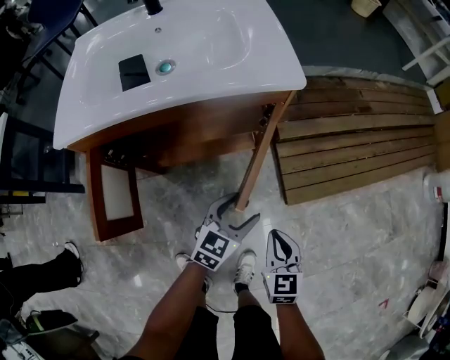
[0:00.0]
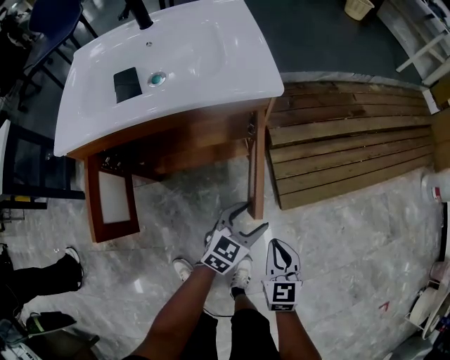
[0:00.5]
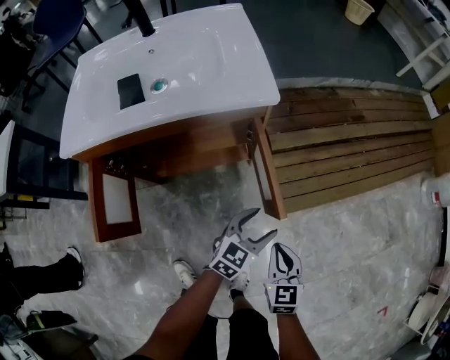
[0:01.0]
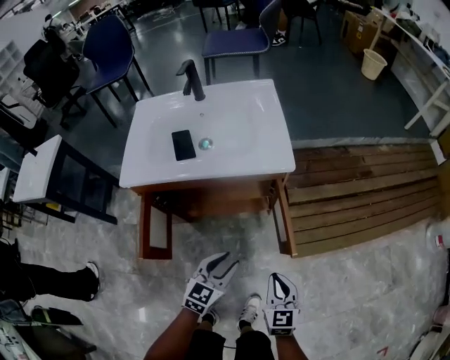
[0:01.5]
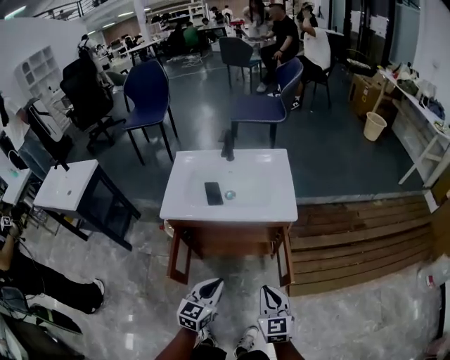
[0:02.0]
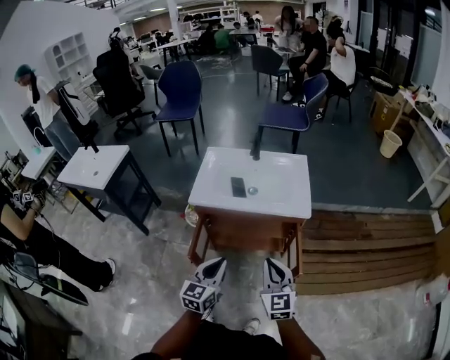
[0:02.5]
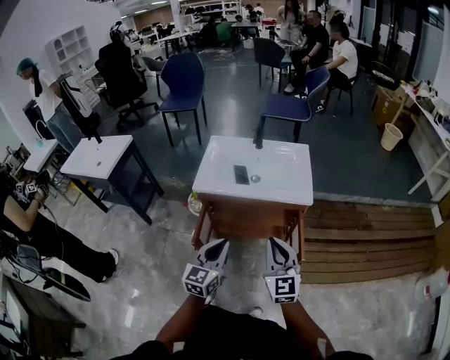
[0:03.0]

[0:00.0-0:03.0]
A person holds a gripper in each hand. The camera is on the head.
0:00.0 to 0:01.5: The right gripper heads upward, covering roughly 10 cm. Meanwhile the left gripper goes roughly 15 cm upward and backward, goes to the right and returns, roughly 10 cm each way, and closes.
0:01.5 to 0:03.0: The left gripper is displaced upward and to the left by roughly 30 cm, rotates about 30 degrees, and closes up; the right gripper is displaced upward by some 35 cm, and swivels some 30 degrees.

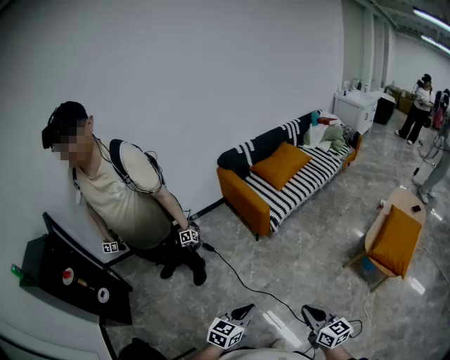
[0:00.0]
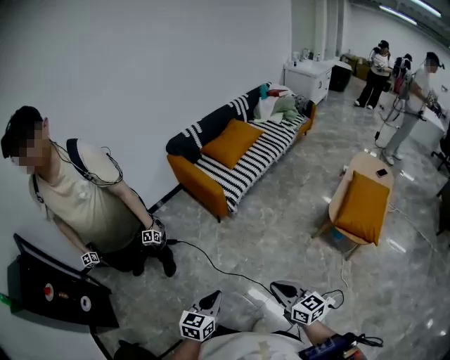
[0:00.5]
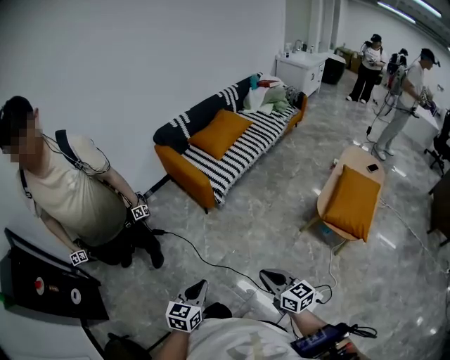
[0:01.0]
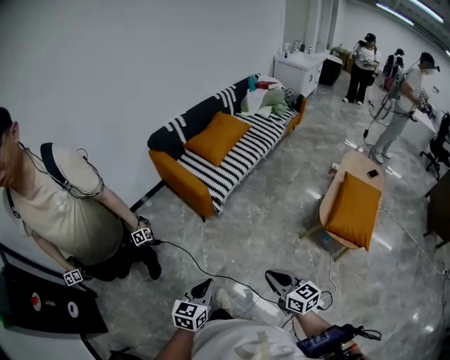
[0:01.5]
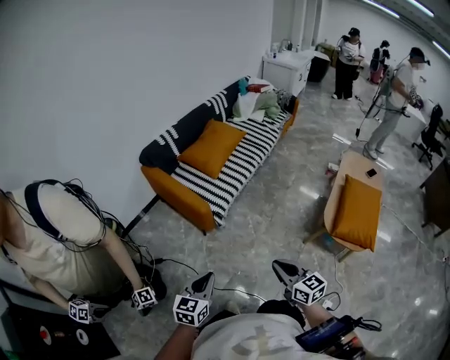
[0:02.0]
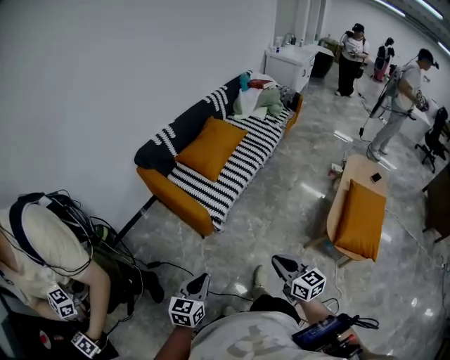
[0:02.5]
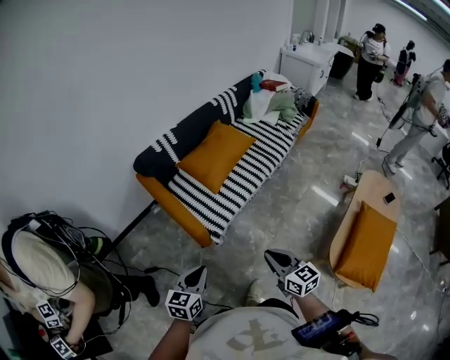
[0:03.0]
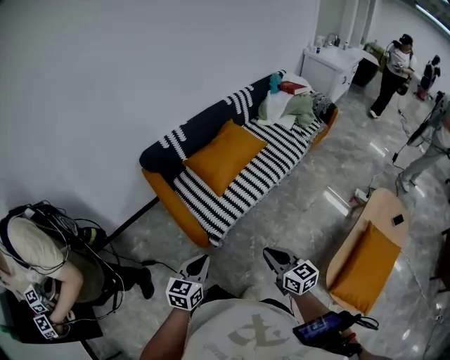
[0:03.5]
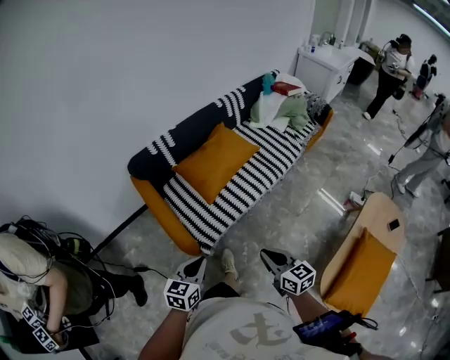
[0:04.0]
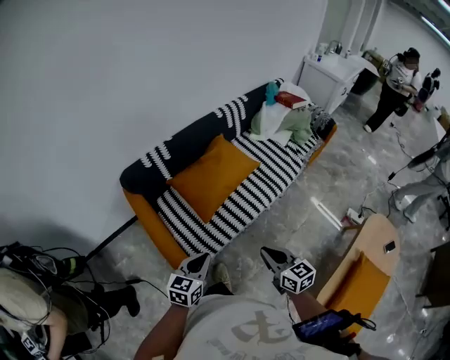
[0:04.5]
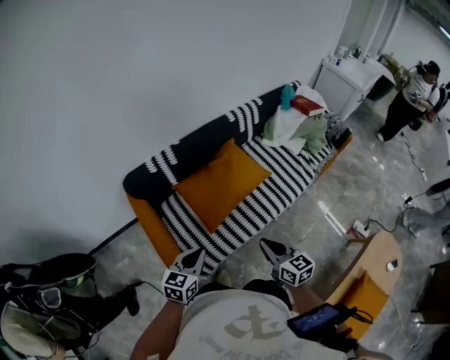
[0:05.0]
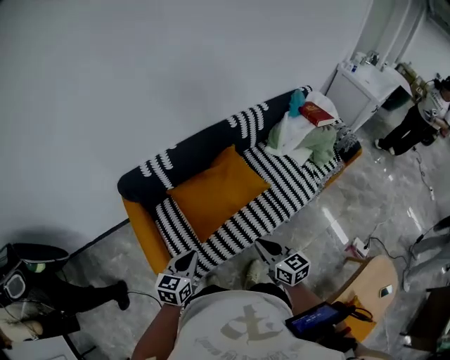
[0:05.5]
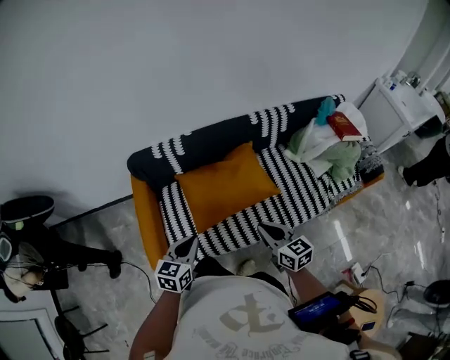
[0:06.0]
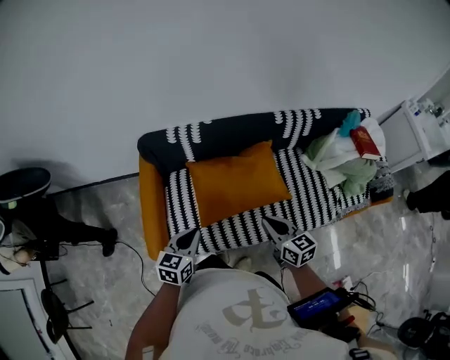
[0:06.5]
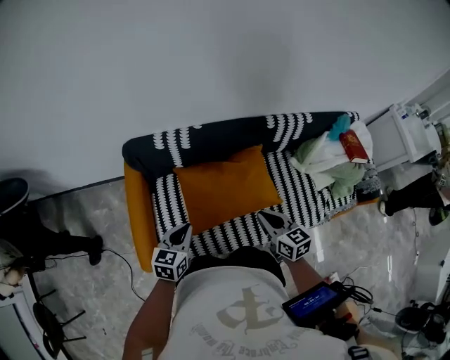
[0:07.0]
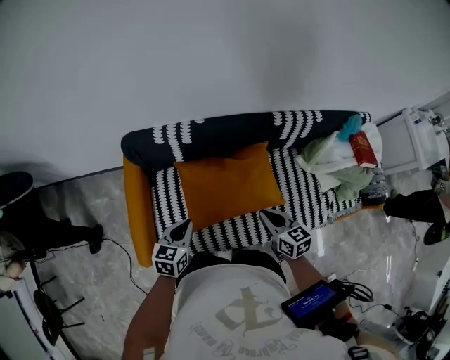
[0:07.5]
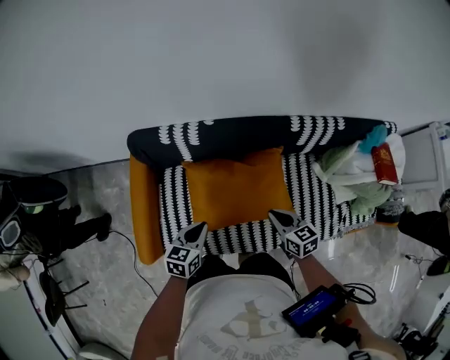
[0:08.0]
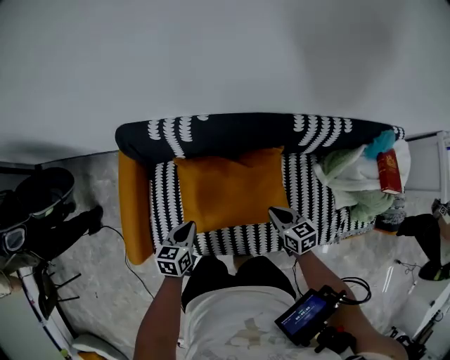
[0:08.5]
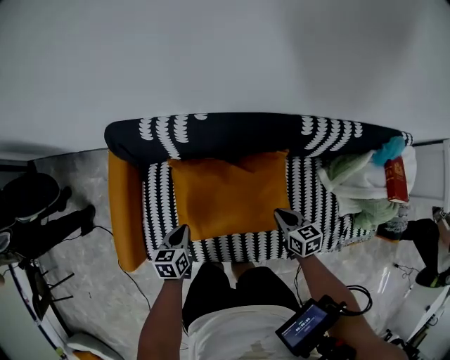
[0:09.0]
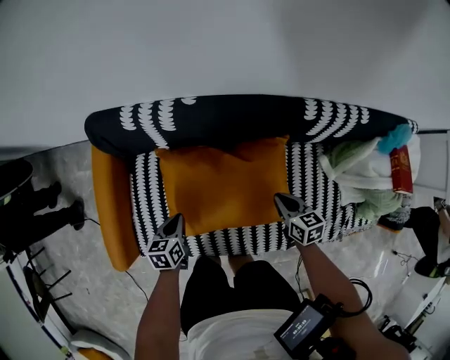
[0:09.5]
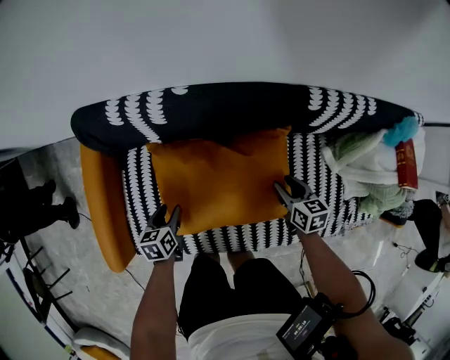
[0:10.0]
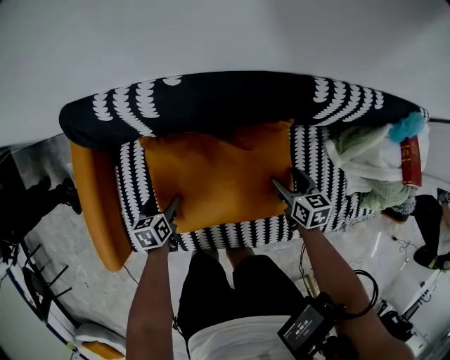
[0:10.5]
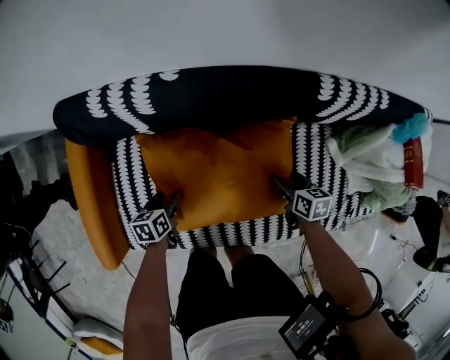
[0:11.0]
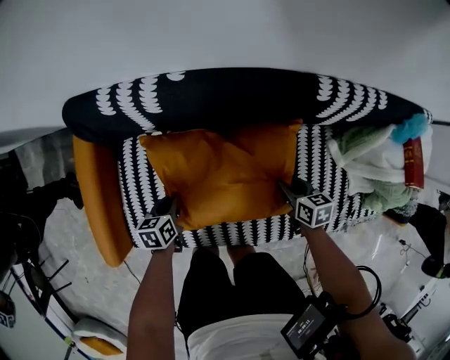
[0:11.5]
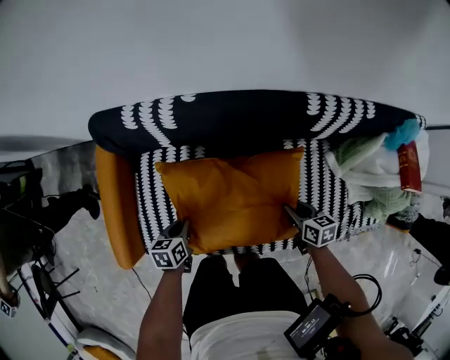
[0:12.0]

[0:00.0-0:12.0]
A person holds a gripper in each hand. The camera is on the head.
0:00.0 to 0:02.0: The two grippers go some 30 cm forward.
0:02.0 to 0:04.0: The right gripper travels forward by some 40 cm, while the left gripper heads forward and to the right, covering about 40 cm.
0:04.0 to 0:06.0: The right gripper ends up roughly 50 cm from where it was, and rotates approximately 20 degrees, while the left gripper shifts by approximately 40 cm, and swivels approximately 20 degrees.
0:06.0 to 0:08.0: Both grippers travel together forward and downward, some 25 cm. The right gripper rotates roughly 20 degrees.
0:08.0 to 0:10.0: The left gripper shifts about 25 cm downward, turns by about 30 degrees, and opens. Meanwhile the right gripper is displaced downward, to the right and forward by roughly 25 cm, and opens up.
0:10.0 to 0:12.0: The right gripper heads backward, covering some 10 cm, and opens, then closes once more. The left gripper ends up some 5 cm from where it was, and closes up.

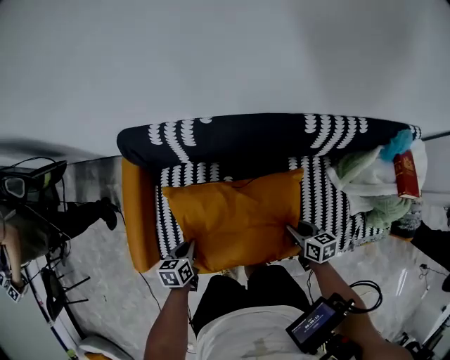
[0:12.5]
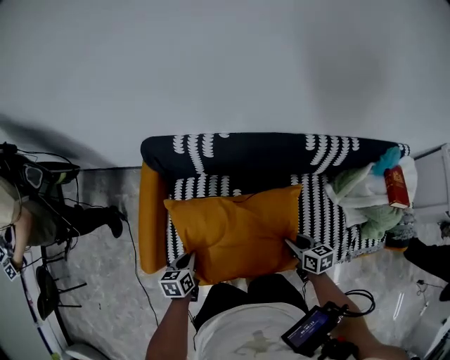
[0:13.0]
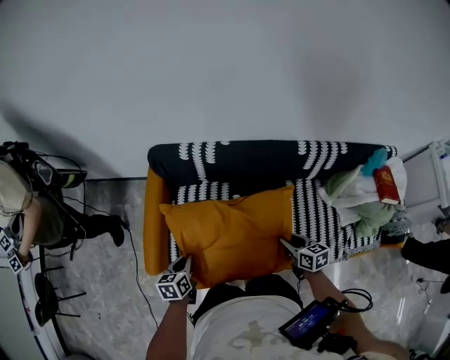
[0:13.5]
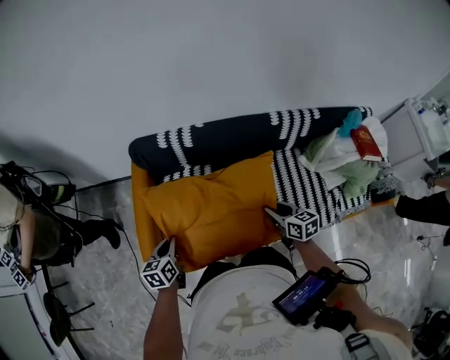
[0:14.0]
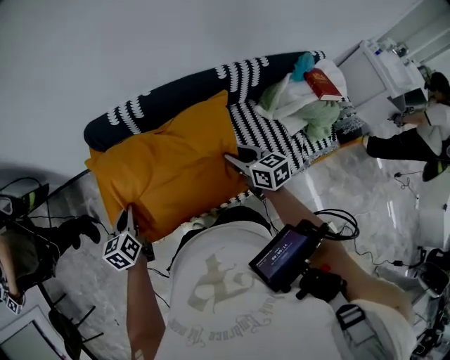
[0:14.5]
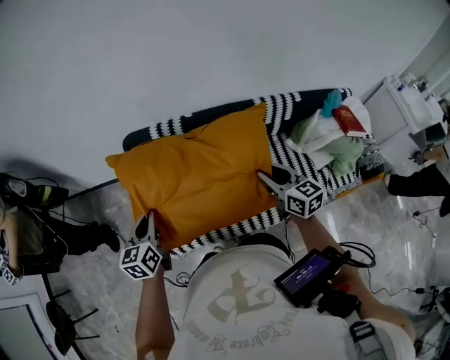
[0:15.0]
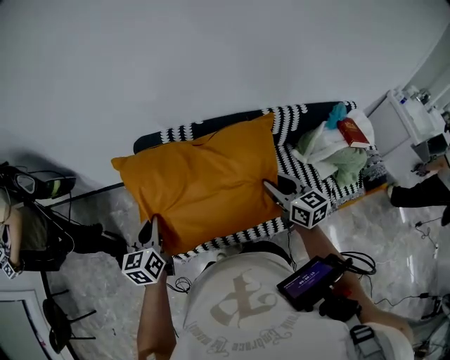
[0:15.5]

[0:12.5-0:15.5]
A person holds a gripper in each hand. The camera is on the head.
0:12.5 to 0:14.0: The grippers both shift upward and to the left by about 20 cm.
0:14.0 to 0:15.5: The grippers both shift upward by about 10 cm. The right gripper swivels some 20 degrees, while the left gripper rotates about 20 degrees.

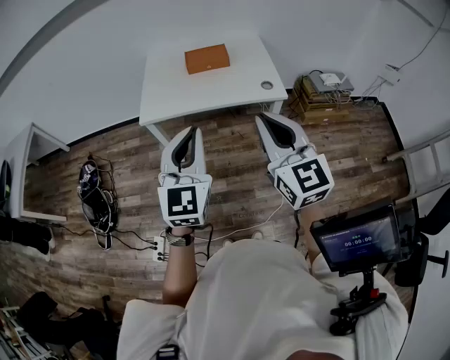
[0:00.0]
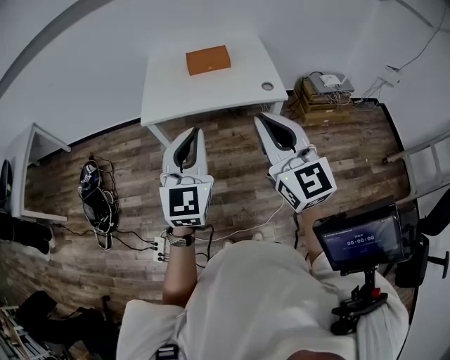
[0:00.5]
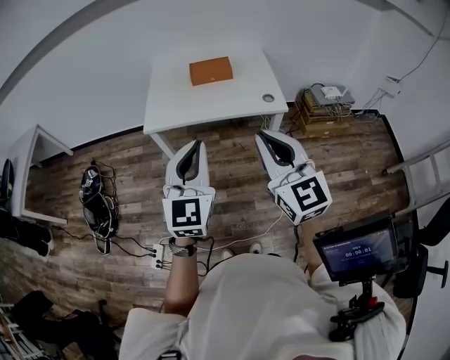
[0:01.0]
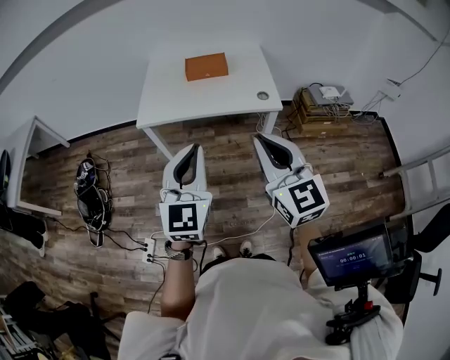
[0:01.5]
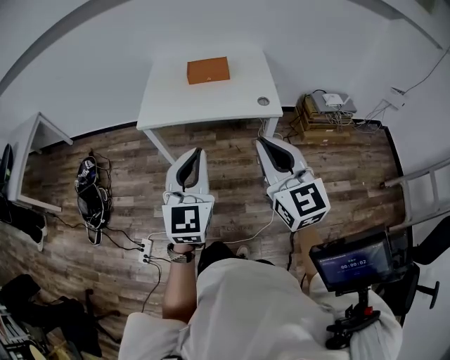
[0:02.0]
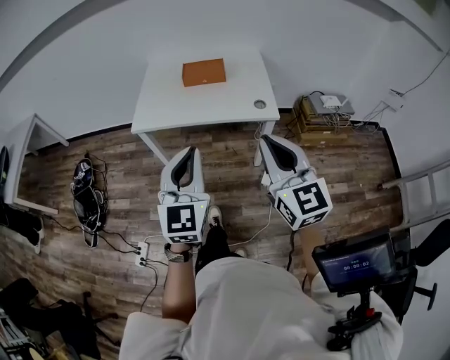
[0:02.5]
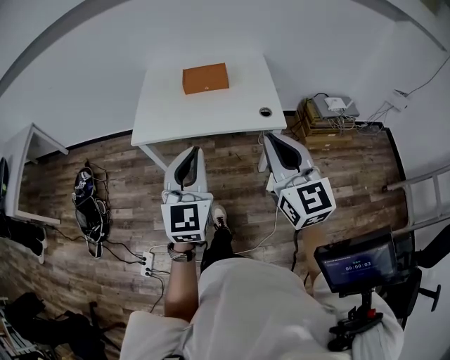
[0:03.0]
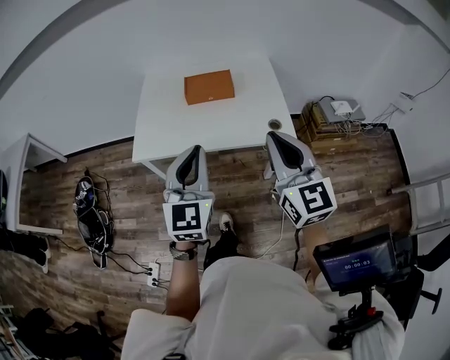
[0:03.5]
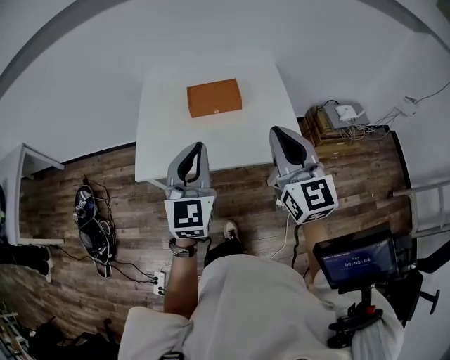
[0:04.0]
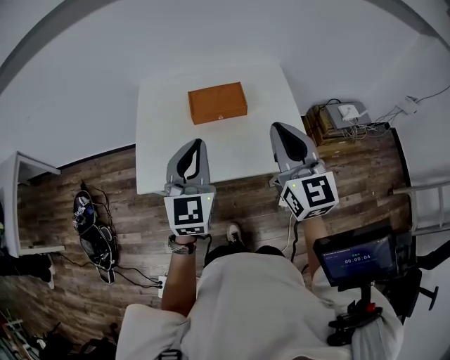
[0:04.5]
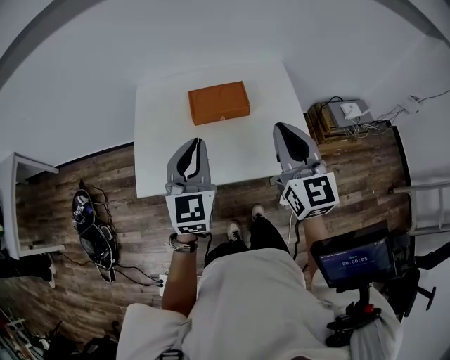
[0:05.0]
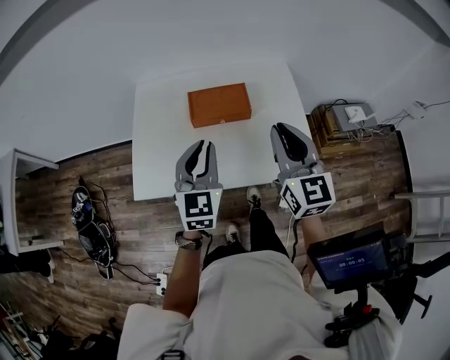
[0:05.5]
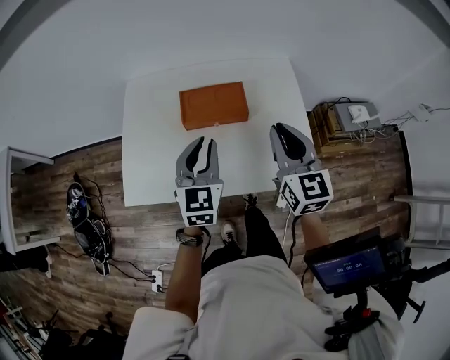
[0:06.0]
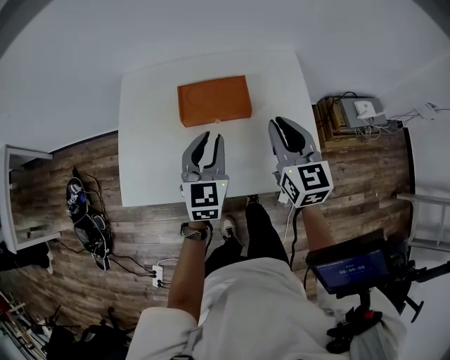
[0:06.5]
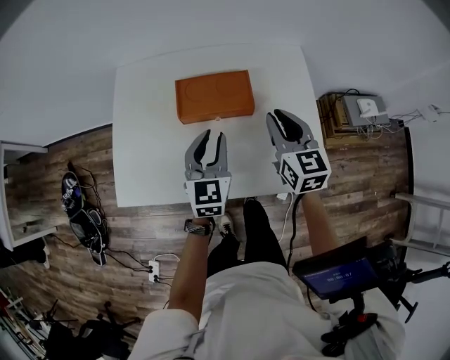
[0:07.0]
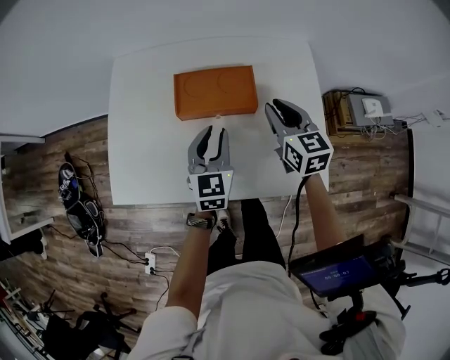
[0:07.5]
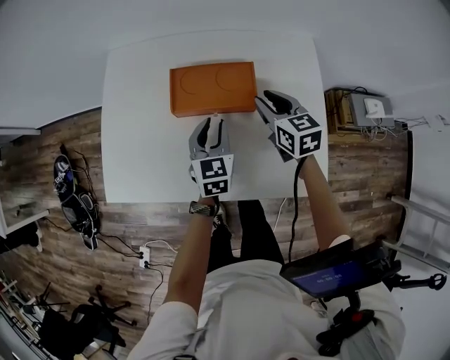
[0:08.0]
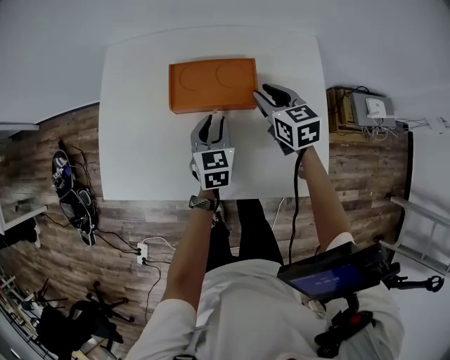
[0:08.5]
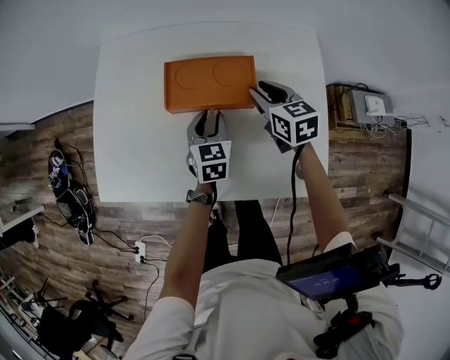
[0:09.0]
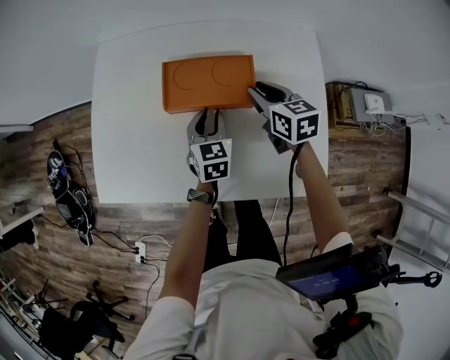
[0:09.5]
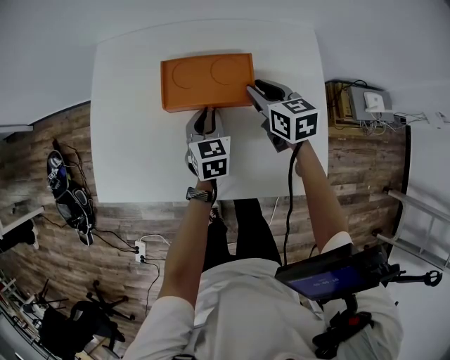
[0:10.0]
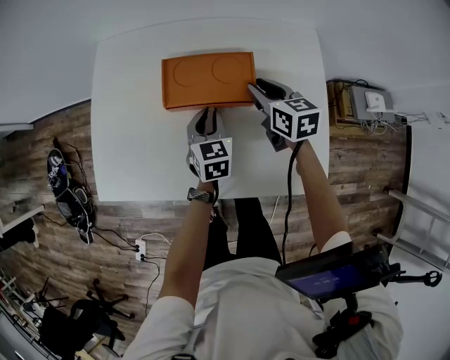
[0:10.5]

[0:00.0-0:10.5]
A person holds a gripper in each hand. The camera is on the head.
0:00.0 to 0:02.0: The grippers both shift to the right by about 5 cm.
0:02.0 to 0:04.0: Both grippers move forward, roughly 30 cm.
0:04.0 to 0:06.5: The grippers both shift forward and downward by roughly 25 cm.
0:06.5 to 0:08.5: The two grippers go roughly 20 cm downward and forward. The left gripper turns by roughly 20 degrees. The right gripper rotates approximately 30 degrees.
0:08.5 to 0:10.5: The grippers make only small movements.
